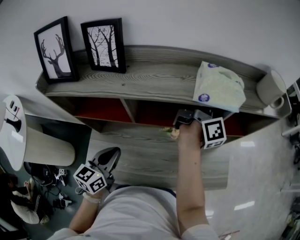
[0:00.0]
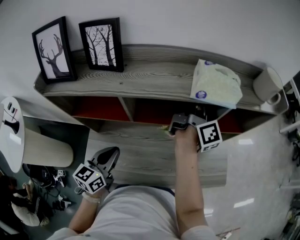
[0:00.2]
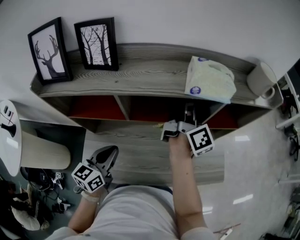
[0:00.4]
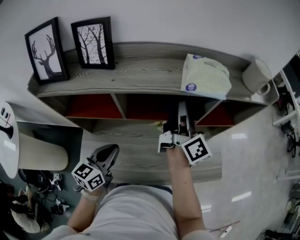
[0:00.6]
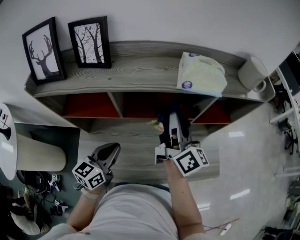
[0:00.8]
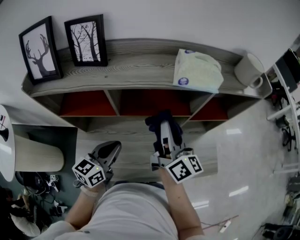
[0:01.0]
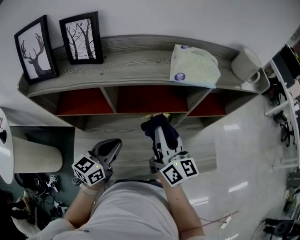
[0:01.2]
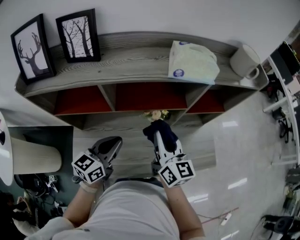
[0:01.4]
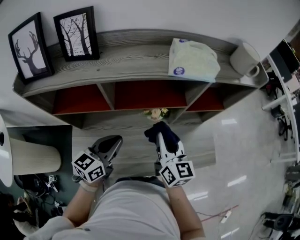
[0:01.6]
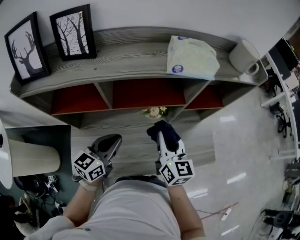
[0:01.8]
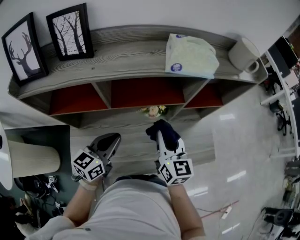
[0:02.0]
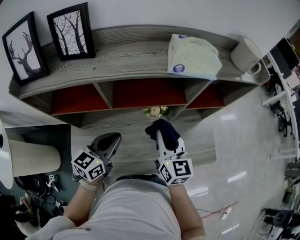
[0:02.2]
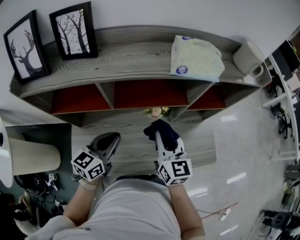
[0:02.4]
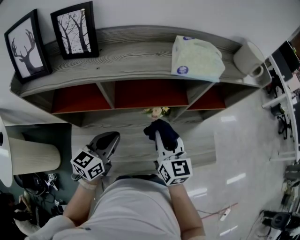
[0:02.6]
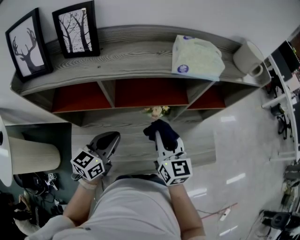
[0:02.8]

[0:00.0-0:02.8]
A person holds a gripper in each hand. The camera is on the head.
0:00.0 to 0:01.4: The right gripper goes some 25 cm backward and downward, and rotates approximately 50 degrees; the left gripper shifts some 5 cm to the right.
0:01.4 to 0:02.8: The grippers make only small movements.

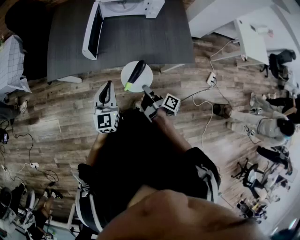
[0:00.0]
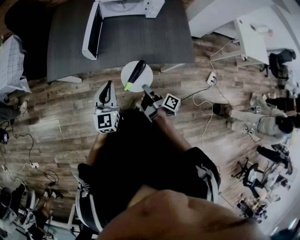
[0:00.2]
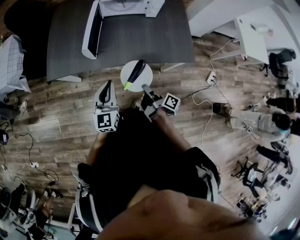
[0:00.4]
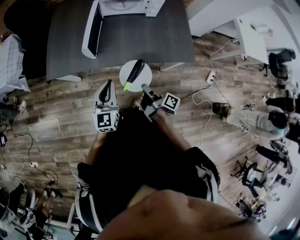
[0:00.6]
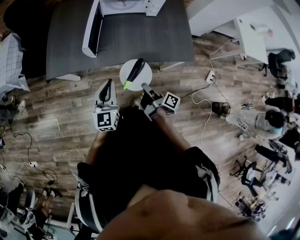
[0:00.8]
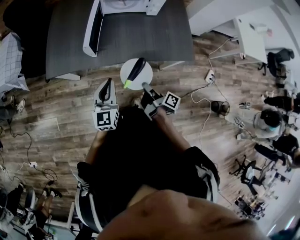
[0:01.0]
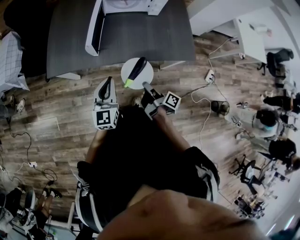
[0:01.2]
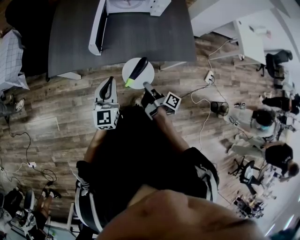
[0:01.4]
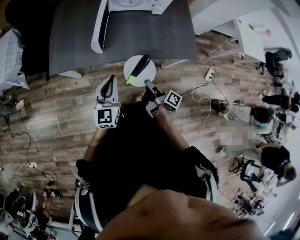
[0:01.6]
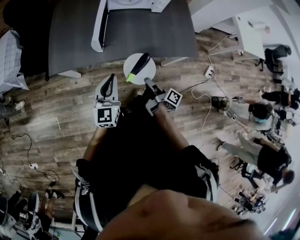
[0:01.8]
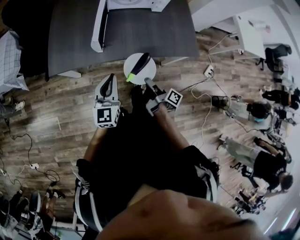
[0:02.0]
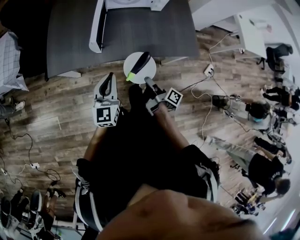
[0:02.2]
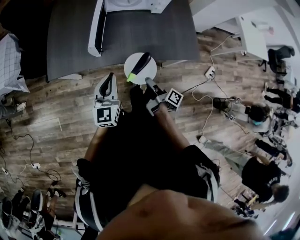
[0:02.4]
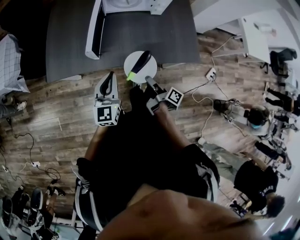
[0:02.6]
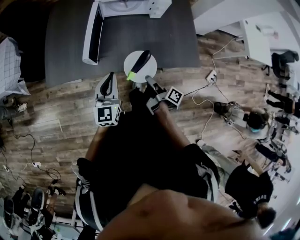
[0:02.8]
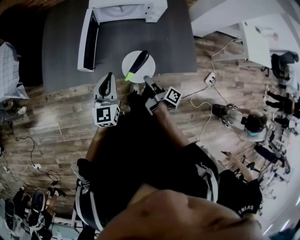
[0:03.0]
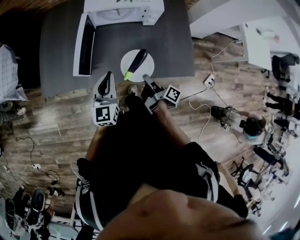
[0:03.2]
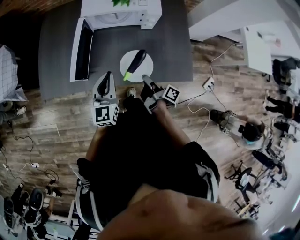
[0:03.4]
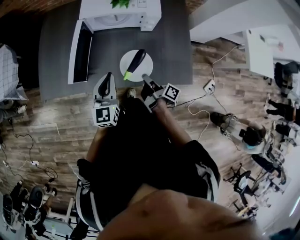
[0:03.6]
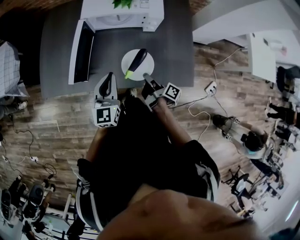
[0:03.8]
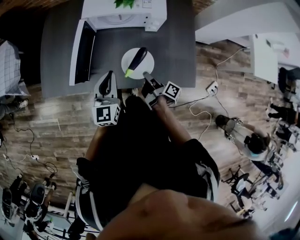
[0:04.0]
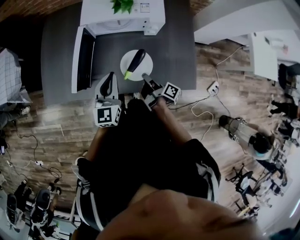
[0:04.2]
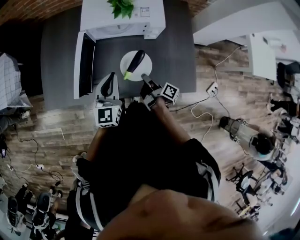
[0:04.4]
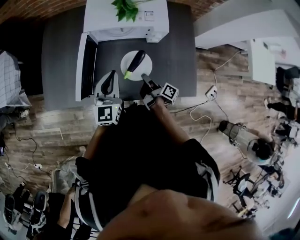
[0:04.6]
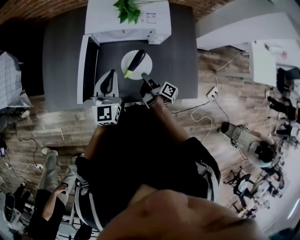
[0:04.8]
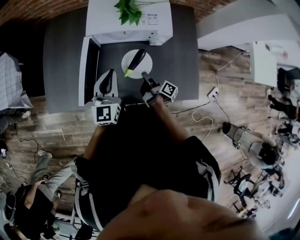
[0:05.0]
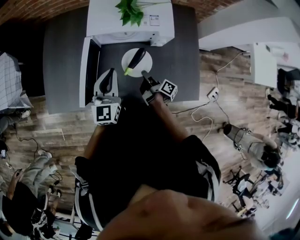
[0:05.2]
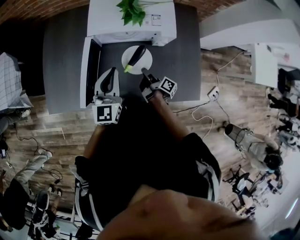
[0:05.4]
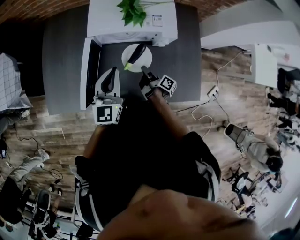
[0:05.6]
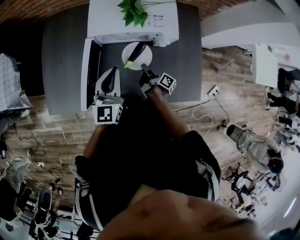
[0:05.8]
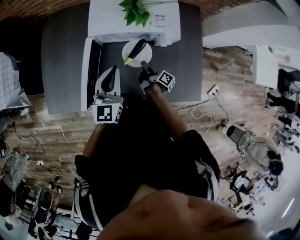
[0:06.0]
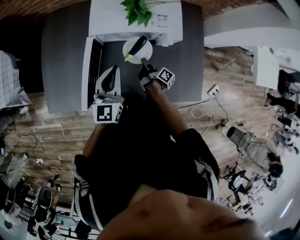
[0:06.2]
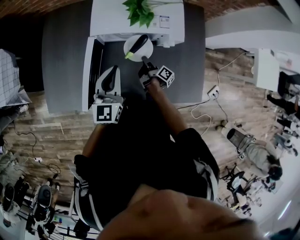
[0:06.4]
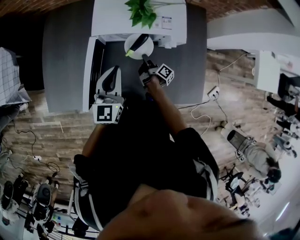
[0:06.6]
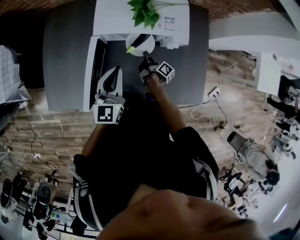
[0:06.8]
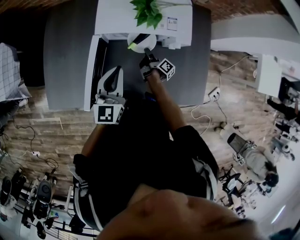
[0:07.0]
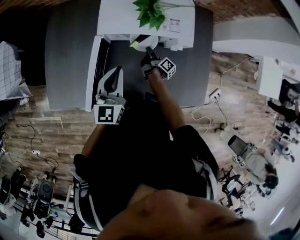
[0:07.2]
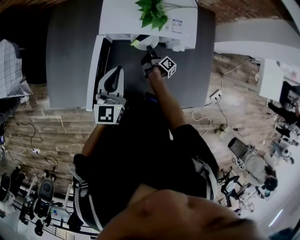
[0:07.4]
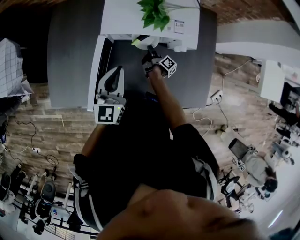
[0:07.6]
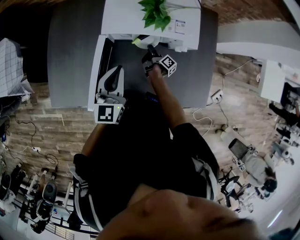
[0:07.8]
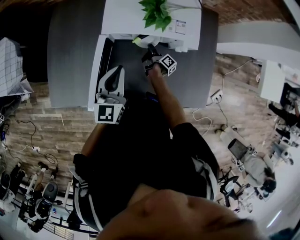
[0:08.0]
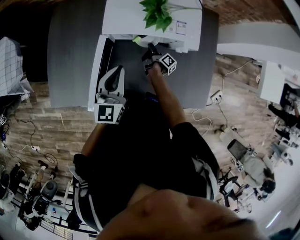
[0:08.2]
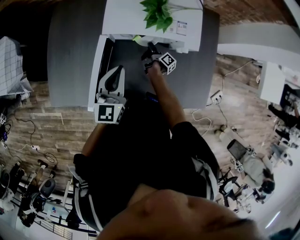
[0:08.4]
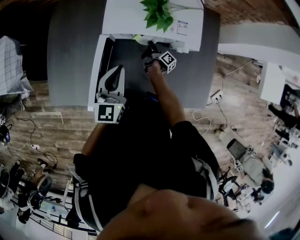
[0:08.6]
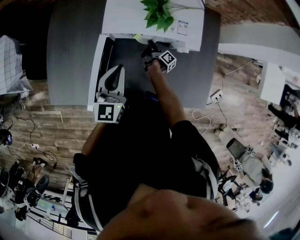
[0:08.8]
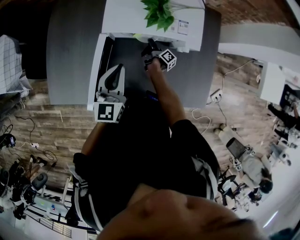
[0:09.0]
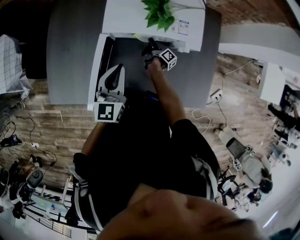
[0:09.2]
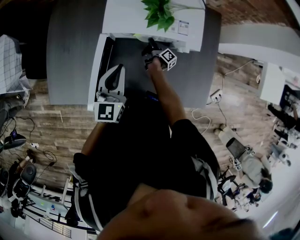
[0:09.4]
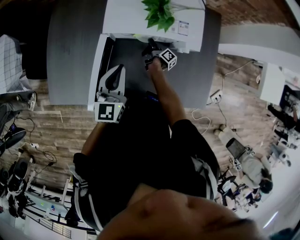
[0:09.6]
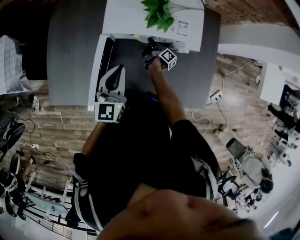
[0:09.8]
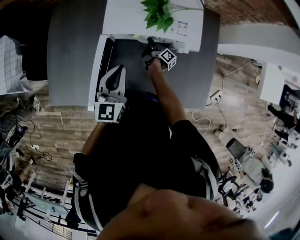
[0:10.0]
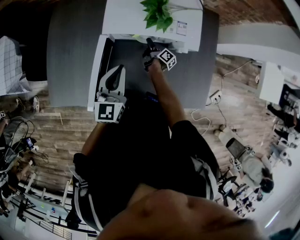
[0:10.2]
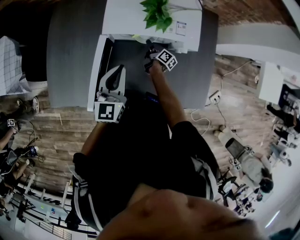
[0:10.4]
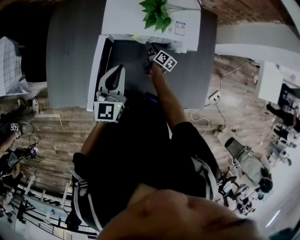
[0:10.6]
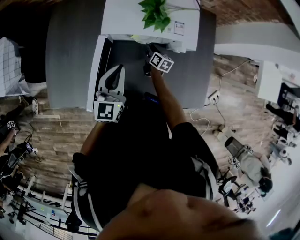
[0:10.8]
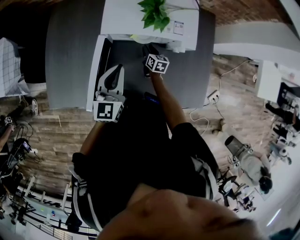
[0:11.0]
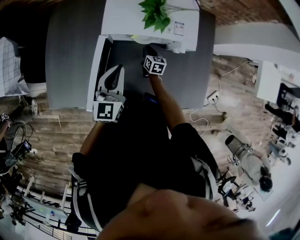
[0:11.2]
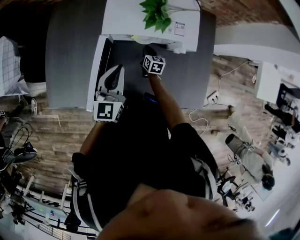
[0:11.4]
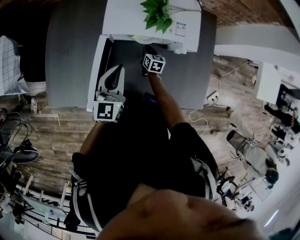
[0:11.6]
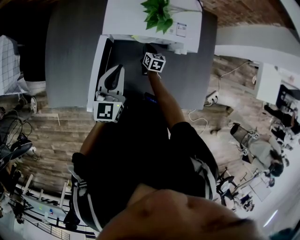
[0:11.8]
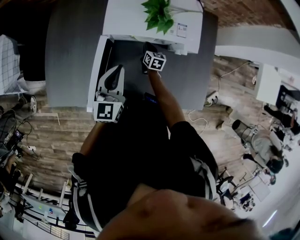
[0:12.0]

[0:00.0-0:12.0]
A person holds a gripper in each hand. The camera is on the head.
0:01.6 to 0:03.0: The left gripper changes place by some 15 cm.
0:03.0 to 0:04.4: The left gripper changes place by approximately 15 cm.
0:04.4 to 0:06.0: The left gripper moves approximately 10 cm.

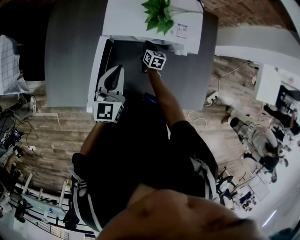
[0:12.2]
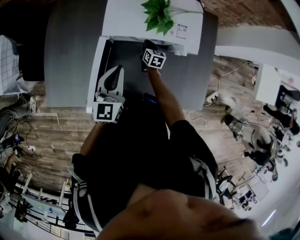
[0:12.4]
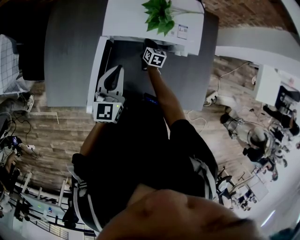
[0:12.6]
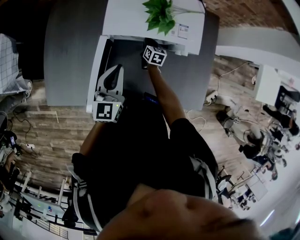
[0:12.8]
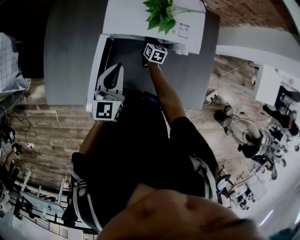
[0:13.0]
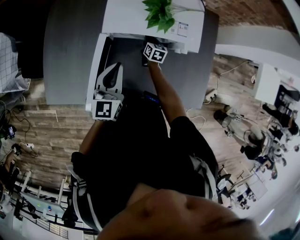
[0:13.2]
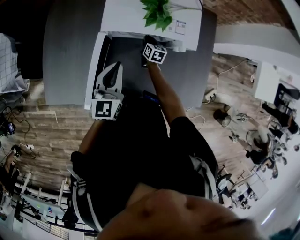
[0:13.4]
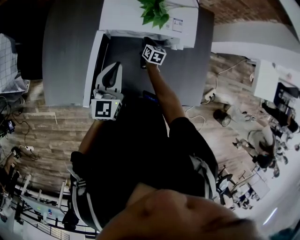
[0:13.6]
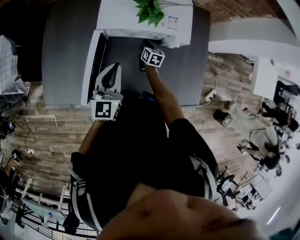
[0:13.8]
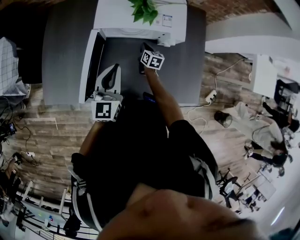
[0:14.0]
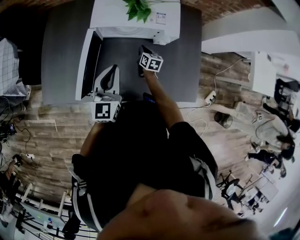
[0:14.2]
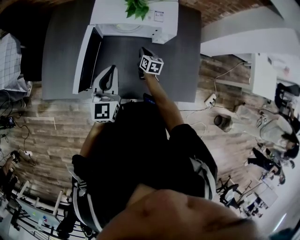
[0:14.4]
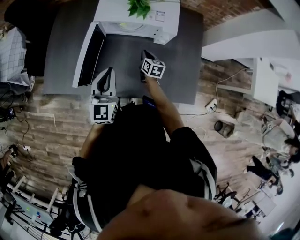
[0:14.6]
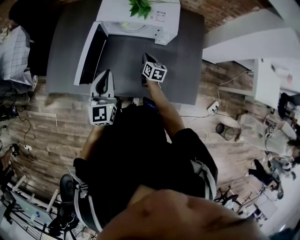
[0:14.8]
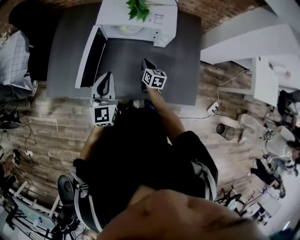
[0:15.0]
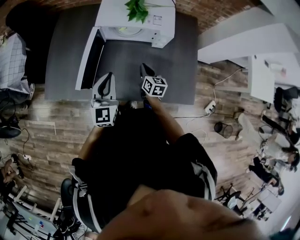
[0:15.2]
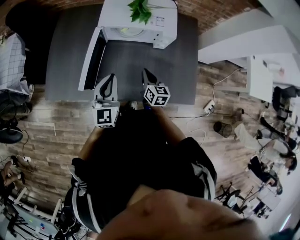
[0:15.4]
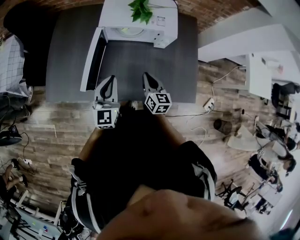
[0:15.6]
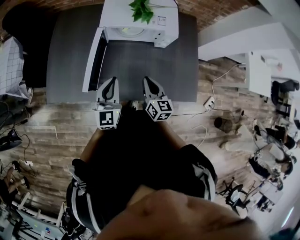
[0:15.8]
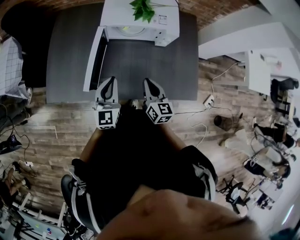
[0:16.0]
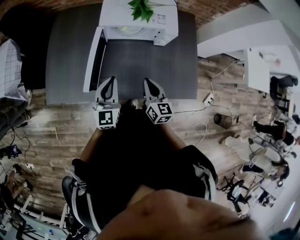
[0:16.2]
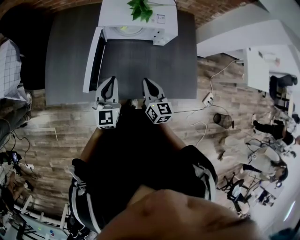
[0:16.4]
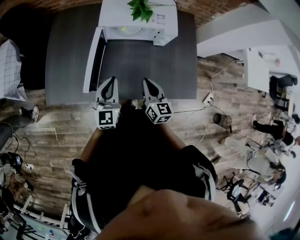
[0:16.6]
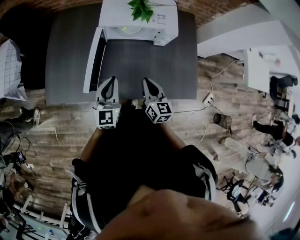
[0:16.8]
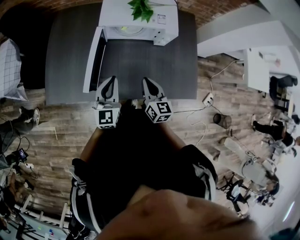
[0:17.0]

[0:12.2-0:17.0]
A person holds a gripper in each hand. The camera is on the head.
0:13.8 to 0:15.4: The left gripper changes place by approximately 15 cm.

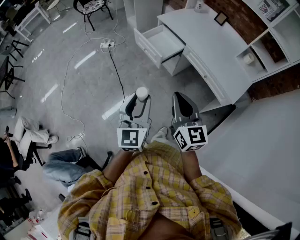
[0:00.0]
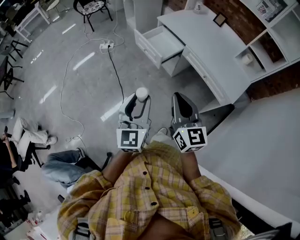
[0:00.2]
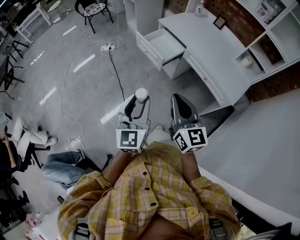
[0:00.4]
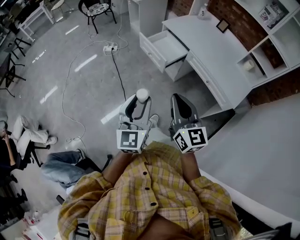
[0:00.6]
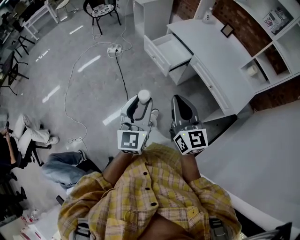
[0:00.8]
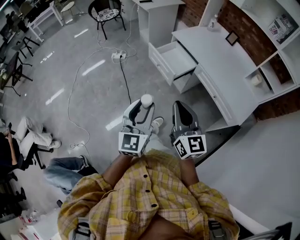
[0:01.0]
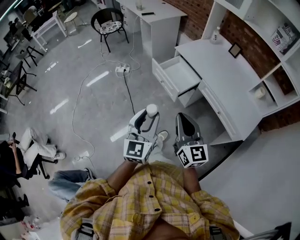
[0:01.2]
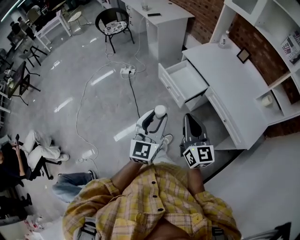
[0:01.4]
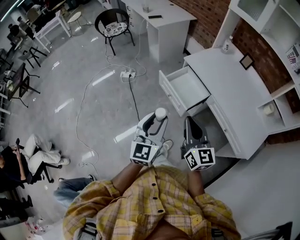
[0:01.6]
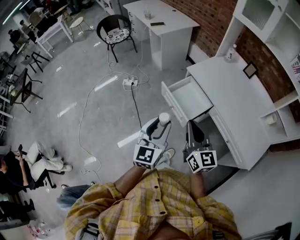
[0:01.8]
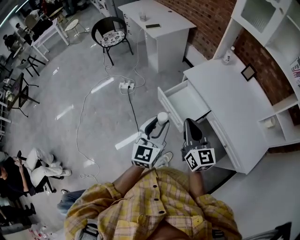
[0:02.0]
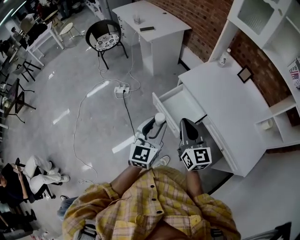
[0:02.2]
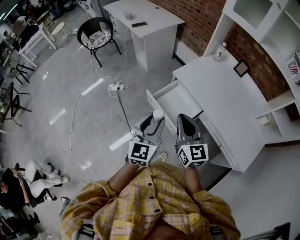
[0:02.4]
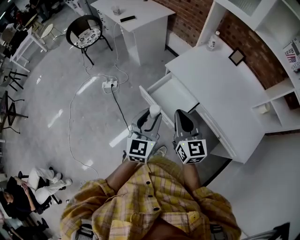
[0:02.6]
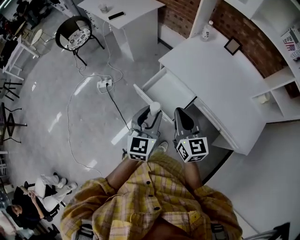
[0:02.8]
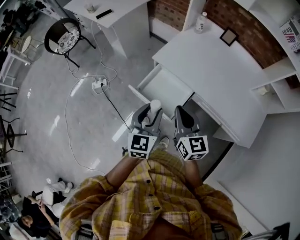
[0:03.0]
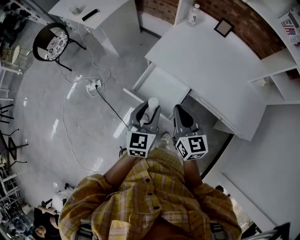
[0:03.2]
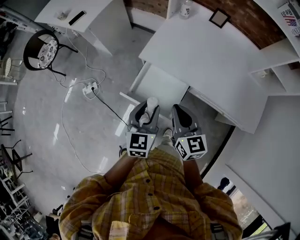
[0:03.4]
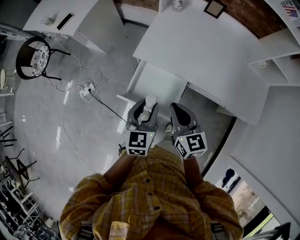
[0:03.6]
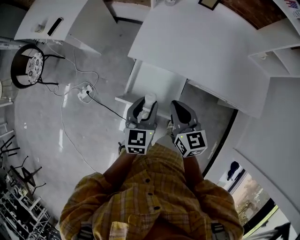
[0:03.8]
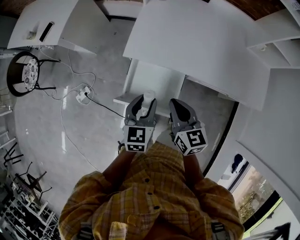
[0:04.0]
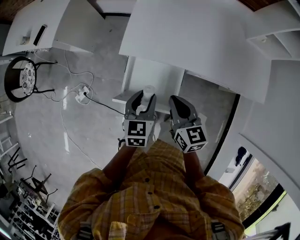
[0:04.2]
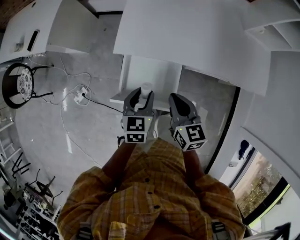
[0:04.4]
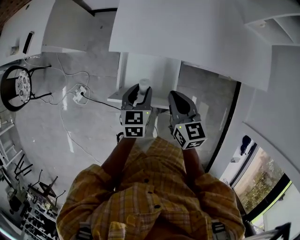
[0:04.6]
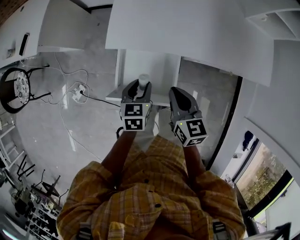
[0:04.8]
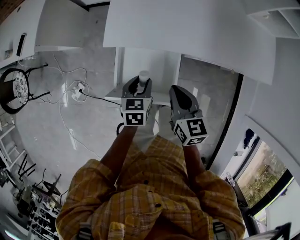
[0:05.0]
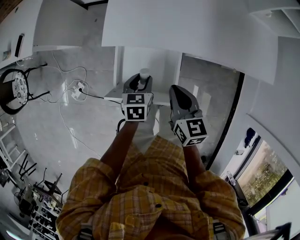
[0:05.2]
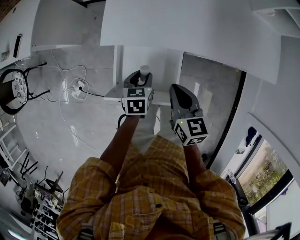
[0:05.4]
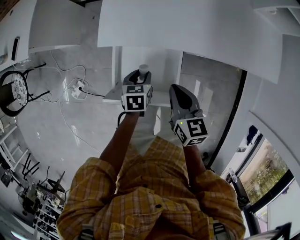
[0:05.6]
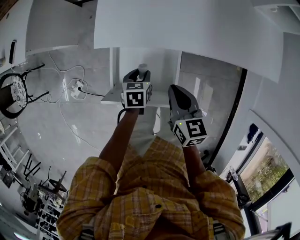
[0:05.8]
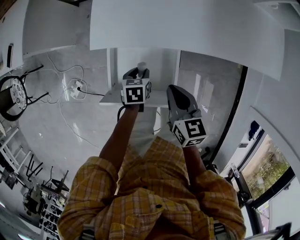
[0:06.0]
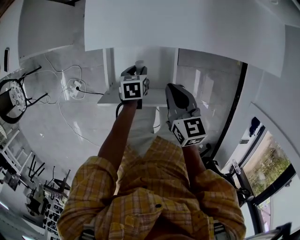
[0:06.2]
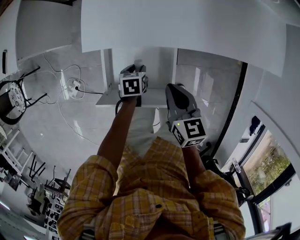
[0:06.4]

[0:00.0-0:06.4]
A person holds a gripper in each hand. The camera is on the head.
0:00.0 to 0:01.6: The two grippers go about 25 cm forward.
0:01.6 to 0:03.2: The grippers both shift forward by some 30 cm. The left gripper rotates approximately 30 degrees. Meanwhile the right gripper turns by some 20 degrees.
0:03.2 to 0:04.8: Both grippers move downward and forward, some 20 cm. The right gripper rotates about 30 degrees, while the left gripper rotates about 30 degrees.
0:04.8 to 0:06.4: The left gripper travels downward by about 20 cm, and changes its angle by roughly 30 degrees. Meanwhile the right gripper shifts about 10 cm downward.
